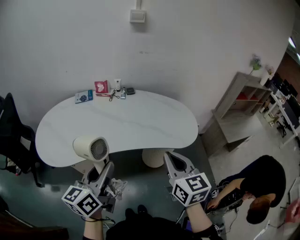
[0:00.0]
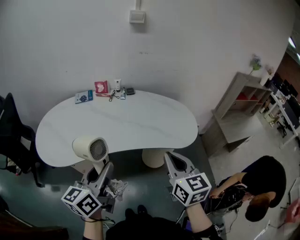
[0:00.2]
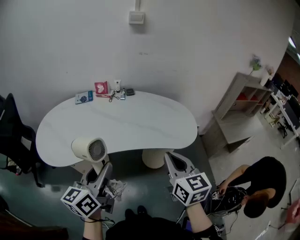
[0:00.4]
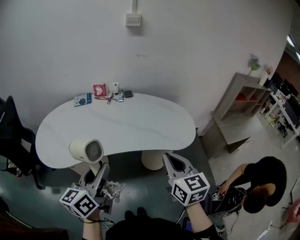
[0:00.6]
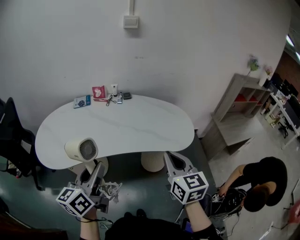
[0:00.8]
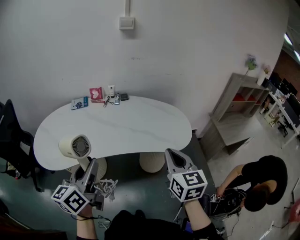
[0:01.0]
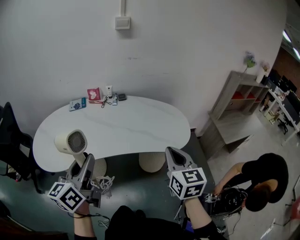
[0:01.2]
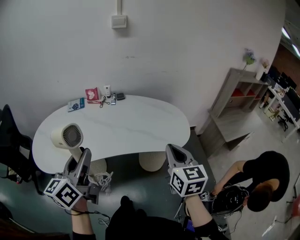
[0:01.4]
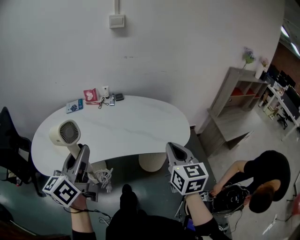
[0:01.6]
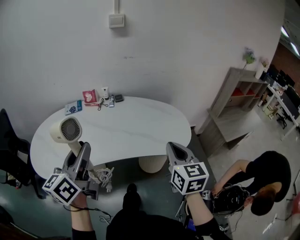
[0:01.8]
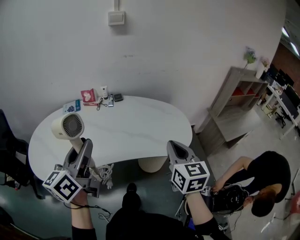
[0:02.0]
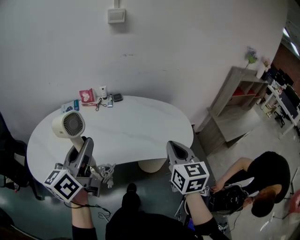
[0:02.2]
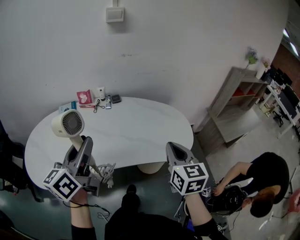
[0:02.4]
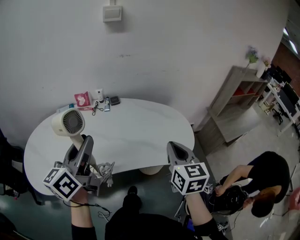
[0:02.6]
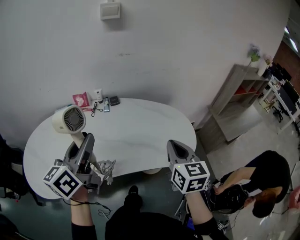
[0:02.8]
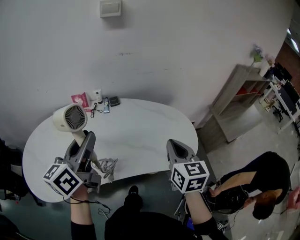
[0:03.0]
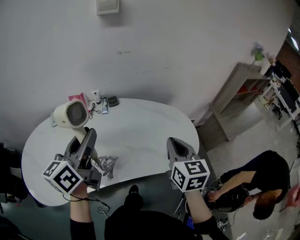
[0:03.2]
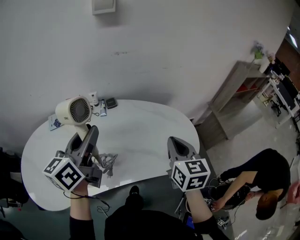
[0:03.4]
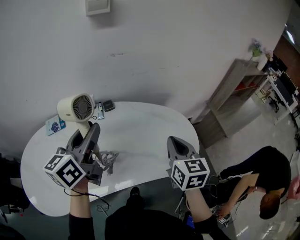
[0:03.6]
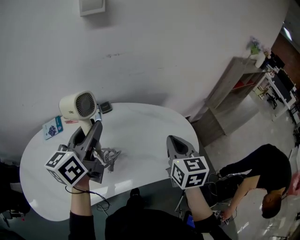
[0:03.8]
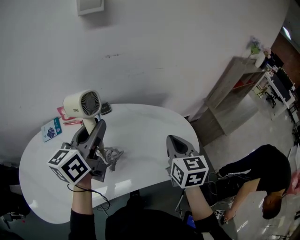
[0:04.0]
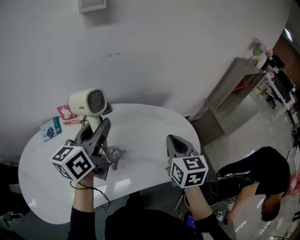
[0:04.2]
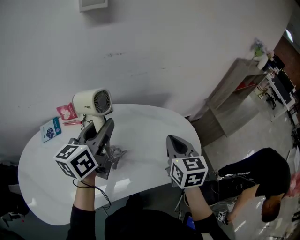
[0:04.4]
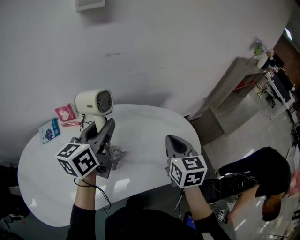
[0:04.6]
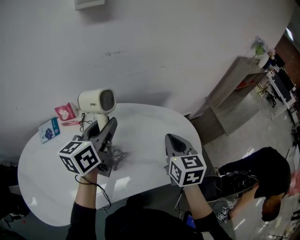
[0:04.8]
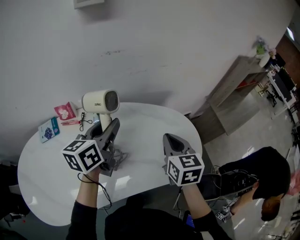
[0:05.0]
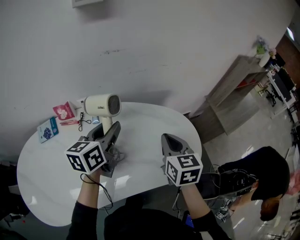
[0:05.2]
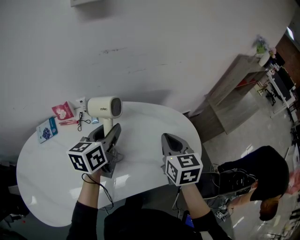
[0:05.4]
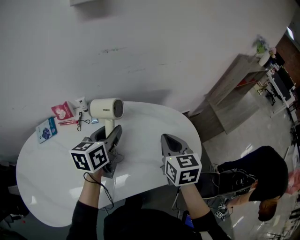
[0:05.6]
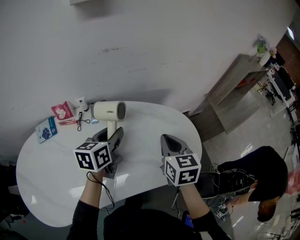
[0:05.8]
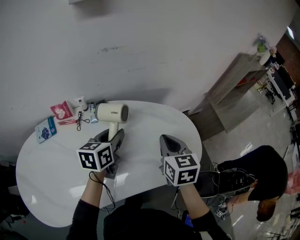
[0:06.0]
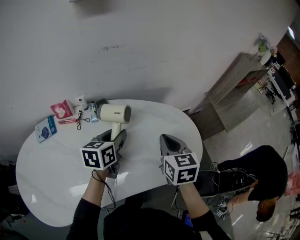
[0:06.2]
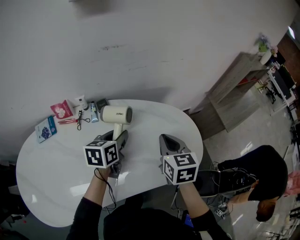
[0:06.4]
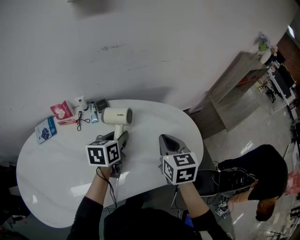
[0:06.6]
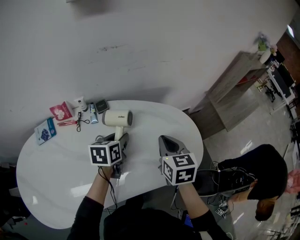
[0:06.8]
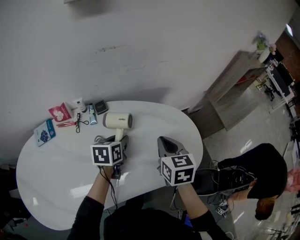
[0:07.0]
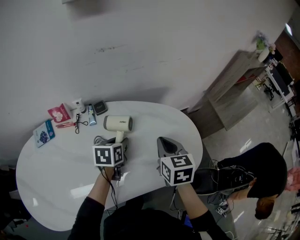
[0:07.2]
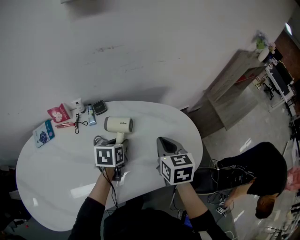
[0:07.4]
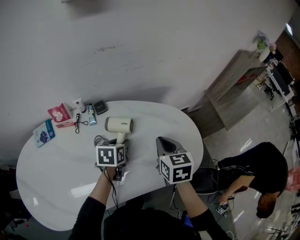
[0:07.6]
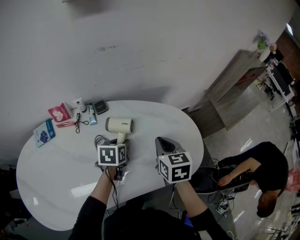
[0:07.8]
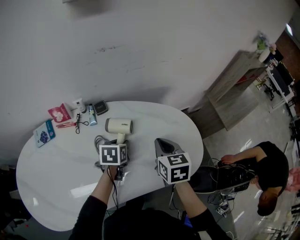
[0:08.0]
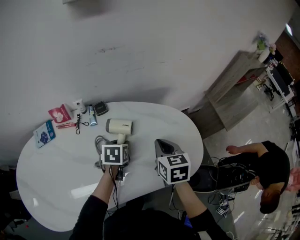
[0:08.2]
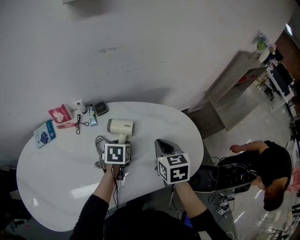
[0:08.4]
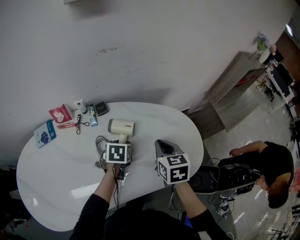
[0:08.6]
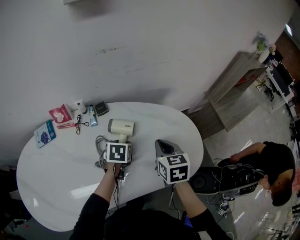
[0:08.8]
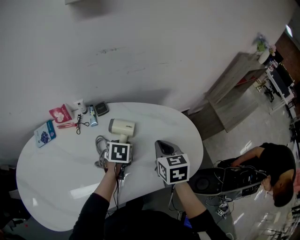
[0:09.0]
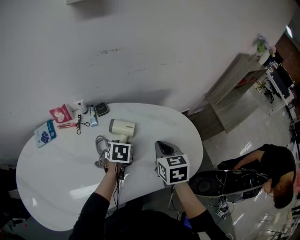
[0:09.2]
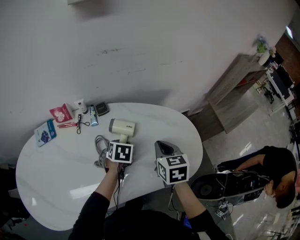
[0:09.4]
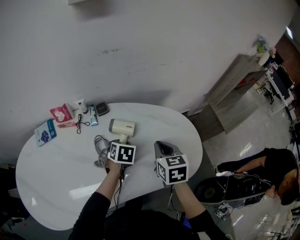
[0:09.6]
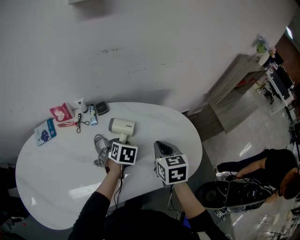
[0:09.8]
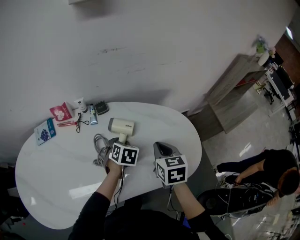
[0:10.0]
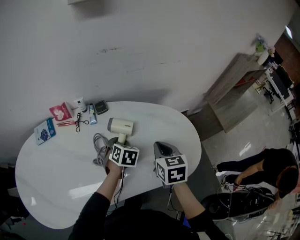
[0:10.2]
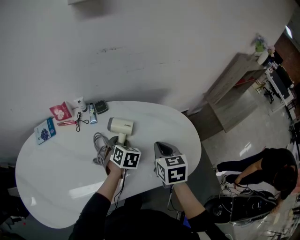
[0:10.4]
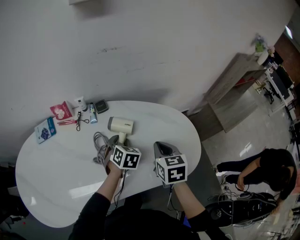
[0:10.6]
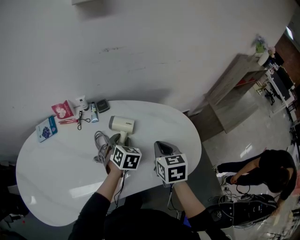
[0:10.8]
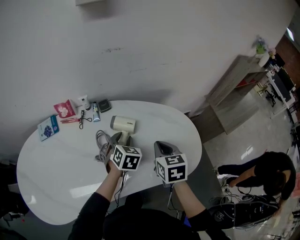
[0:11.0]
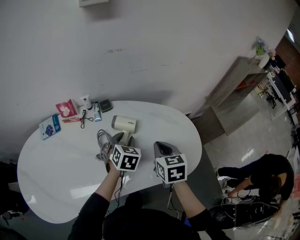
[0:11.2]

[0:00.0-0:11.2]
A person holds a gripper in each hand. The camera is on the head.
0:00.0 to 0:01.6: The right gripper heads to the right and forward, covering roughly 10 cm. The left gripper goes roughly 10 cm upward and forward.
0:01.6 to 0:03.2: Both grippers move forward, some 20 cm.
0:03.2 to 0:04.8: The left gripper is displaced forward by about 15 cm. The right gripper goes roughly 10 cm forward.
0:04.8 to 0:06.4: The left gripper goes about 15 cm downward, and turns by some 20 degrees.
0:06.4 to 0:08.0: The left gripper shifts about 10 cm downward.
0:08.0 to 0:09.6: There are only small adjustments of the grippers.
0:09.6 to 0:11.2: The left gripper goes approximately 5 cm upward.

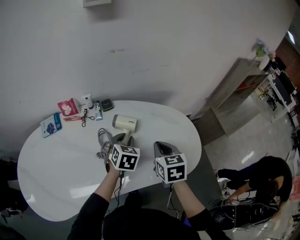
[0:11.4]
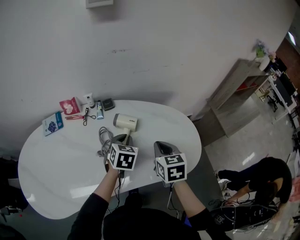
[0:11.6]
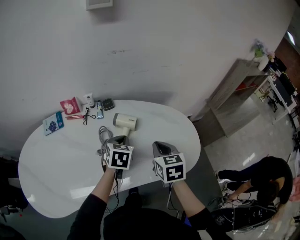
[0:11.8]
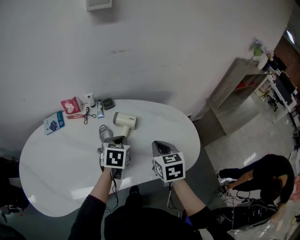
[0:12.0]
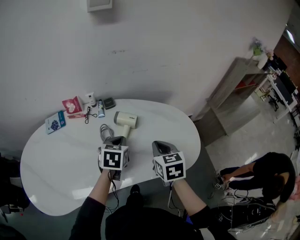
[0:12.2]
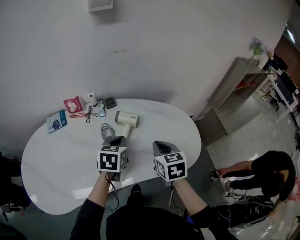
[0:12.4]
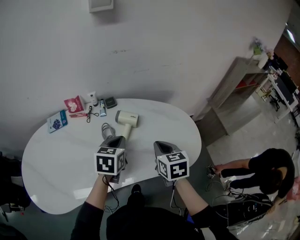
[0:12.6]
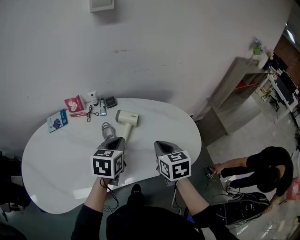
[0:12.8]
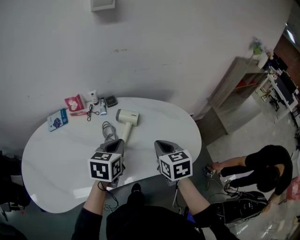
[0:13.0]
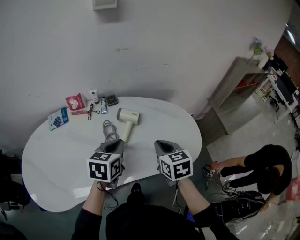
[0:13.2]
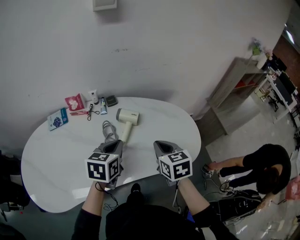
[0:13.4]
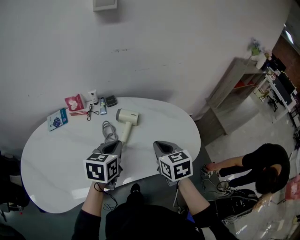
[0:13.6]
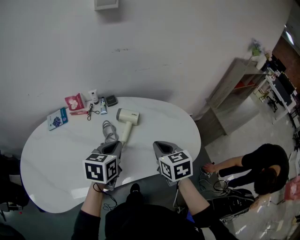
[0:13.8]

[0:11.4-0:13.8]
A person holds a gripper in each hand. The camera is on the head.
0:11.4 to 0:12.6: The left gripper is displaced upward and backward by approximately 10 cm, and closes up.
0:12.6 to 0:13.8: The grippers stay close to where they were, moving slightly.

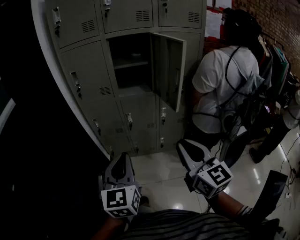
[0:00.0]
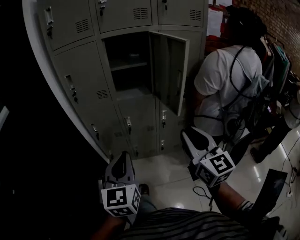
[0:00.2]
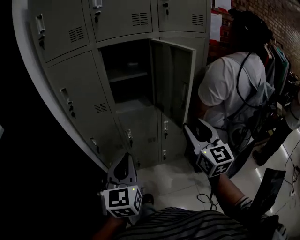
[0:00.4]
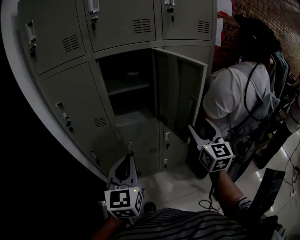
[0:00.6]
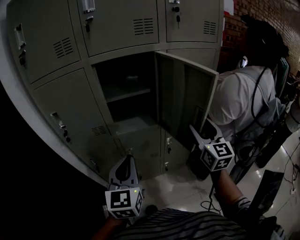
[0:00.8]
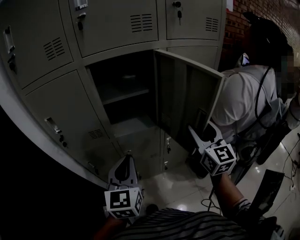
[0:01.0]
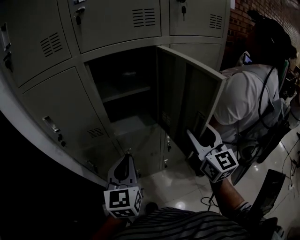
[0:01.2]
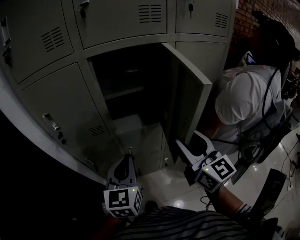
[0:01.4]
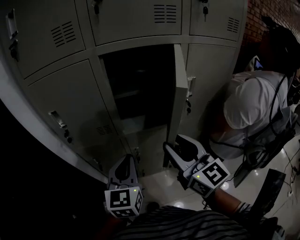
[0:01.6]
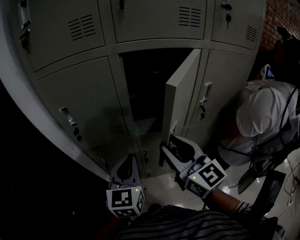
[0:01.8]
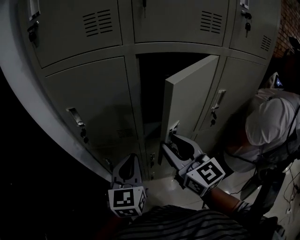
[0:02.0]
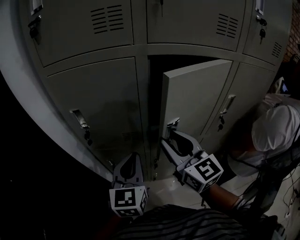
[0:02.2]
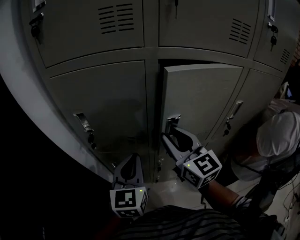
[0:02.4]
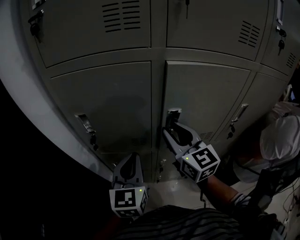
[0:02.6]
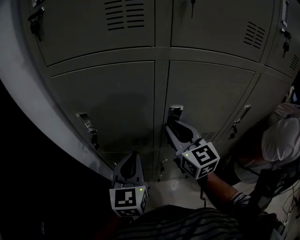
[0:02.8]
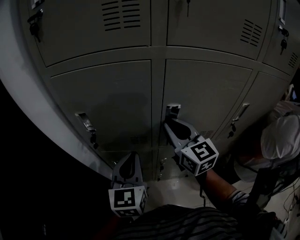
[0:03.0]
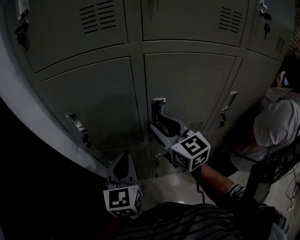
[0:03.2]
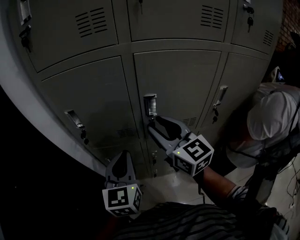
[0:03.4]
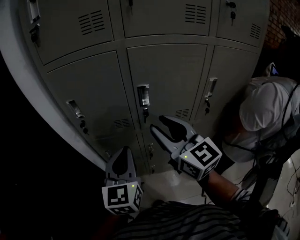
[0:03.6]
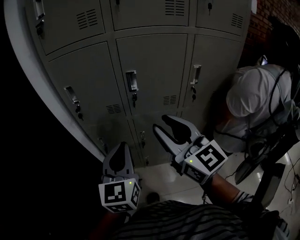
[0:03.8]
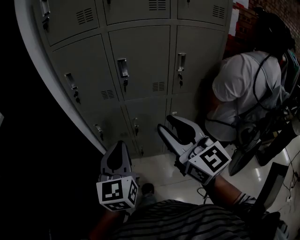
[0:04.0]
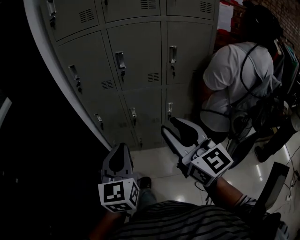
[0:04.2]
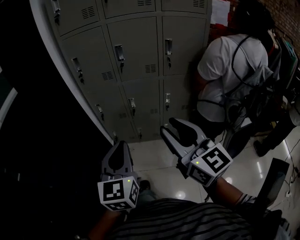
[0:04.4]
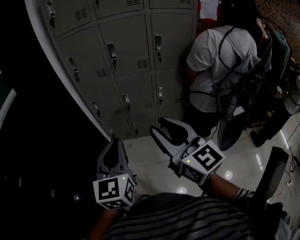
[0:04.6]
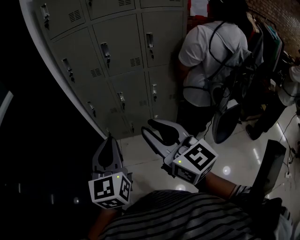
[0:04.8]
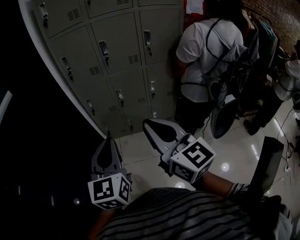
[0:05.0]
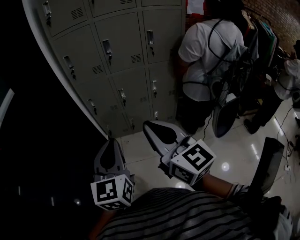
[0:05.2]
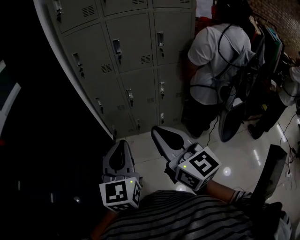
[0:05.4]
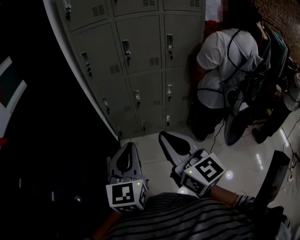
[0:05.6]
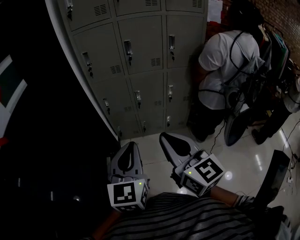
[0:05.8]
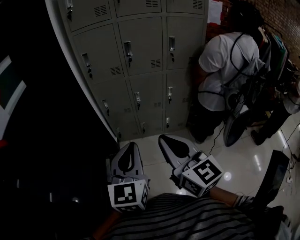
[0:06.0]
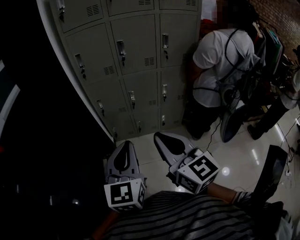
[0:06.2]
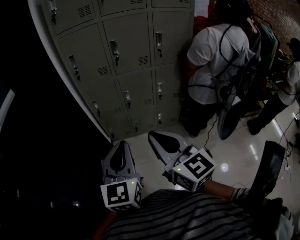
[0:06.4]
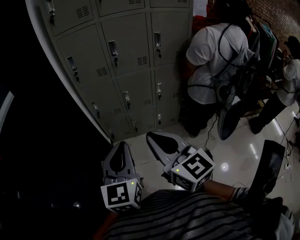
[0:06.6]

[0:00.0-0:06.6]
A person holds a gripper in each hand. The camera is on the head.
0:00.0 to 0:01.6: The grippers both shift forward by approximately 35 cm. The right gripper opens its fingers.
0:01.6 to 0:03.2: The left gripper goes approximately 15 cm forward and to the left; the right gripper shifts some 25 cm forward and to the left, and closes, then reopens.
0:03.2 to 0:05.0: The pair of grippers is taken backward, roughly 60 cm. The right gripper closes its fingers.
0:05.0 to 0:06.6: The right gripper is displaced to the left by roughly 5 cm.

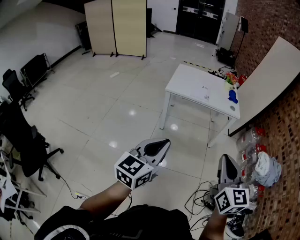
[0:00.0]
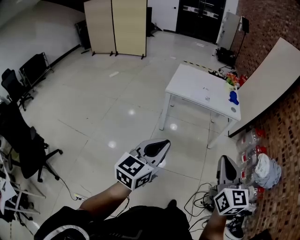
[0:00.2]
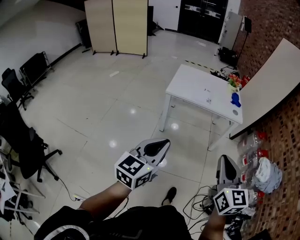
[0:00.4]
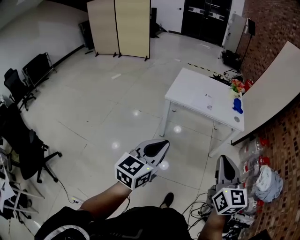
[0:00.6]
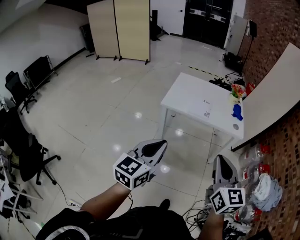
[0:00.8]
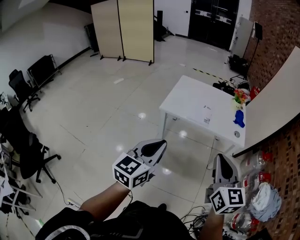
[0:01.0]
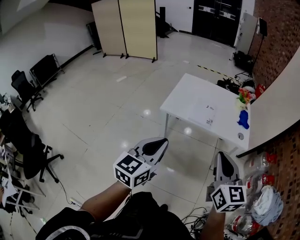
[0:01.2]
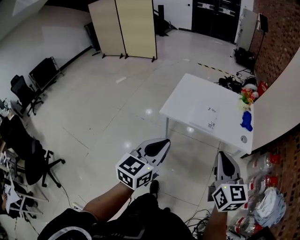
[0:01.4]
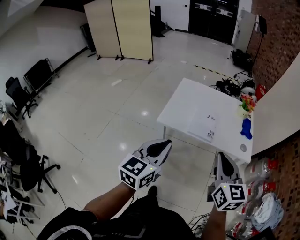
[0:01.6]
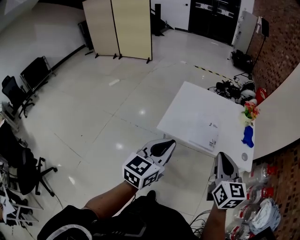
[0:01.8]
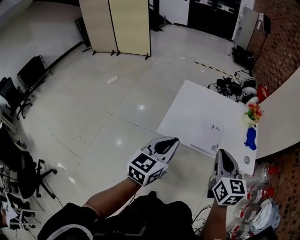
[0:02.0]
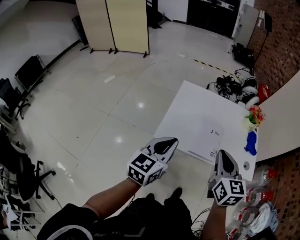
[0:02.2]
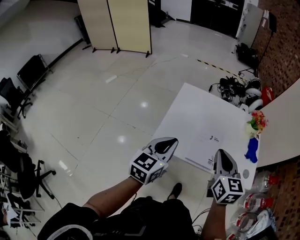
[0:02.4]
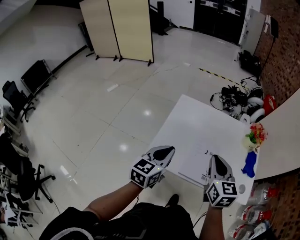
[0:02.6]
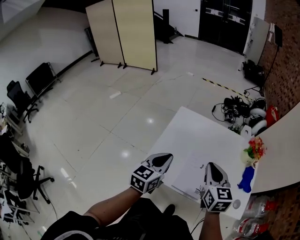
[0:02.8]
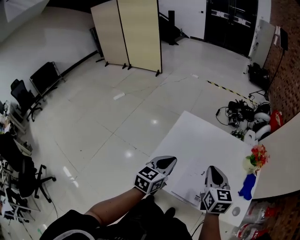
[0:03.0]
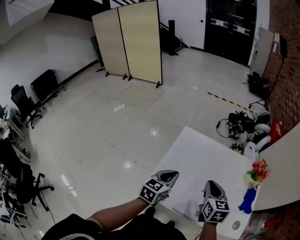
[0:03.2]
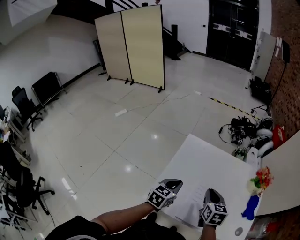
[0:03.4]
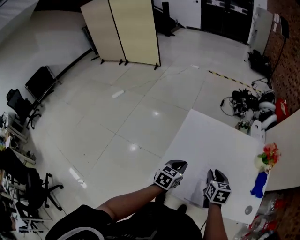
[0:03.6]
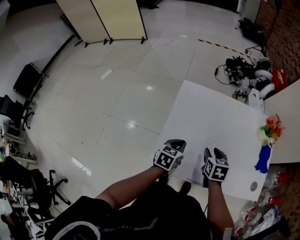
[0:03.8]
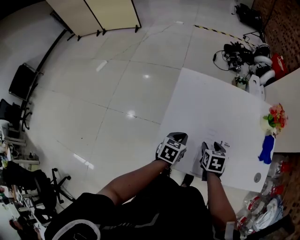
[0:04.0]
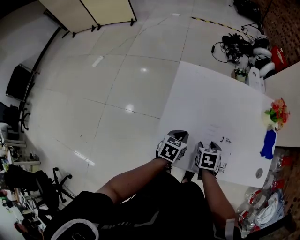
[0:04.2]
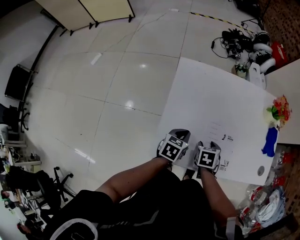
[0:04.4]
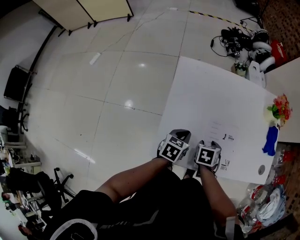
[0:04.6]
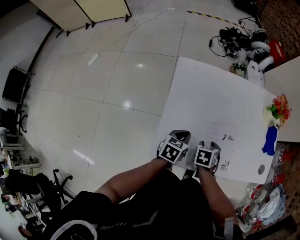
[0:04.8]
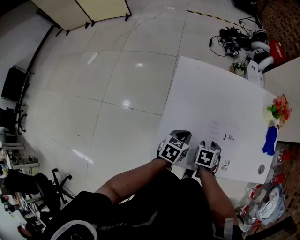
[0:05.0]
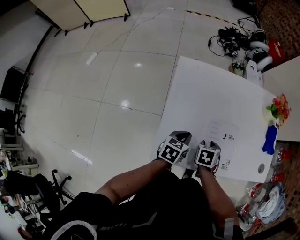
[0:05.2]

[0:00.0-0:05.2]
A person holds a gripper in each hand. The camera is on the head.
0:00.0 to 0:01.8: The two grippers travel together, forward, about 50 cm.
0:01.8 to 0:03.4: The two grippers go some 40 cm forward and downward. The right gripper rotates some 20 degrees, while the left gripper rotates approximately 20 degrees.
0:03.4 to 0:05.2: Both grippers travel together downward, some 20 cm. The right gripper tips its fingers downward by roughly 30 degrees, and opens its fingers; the left gripper rotates roughly 20 degrees.
